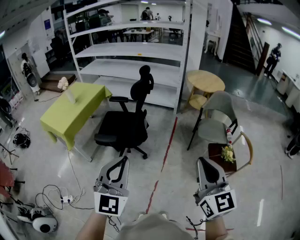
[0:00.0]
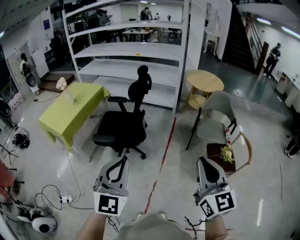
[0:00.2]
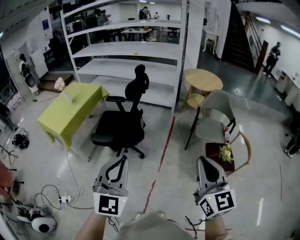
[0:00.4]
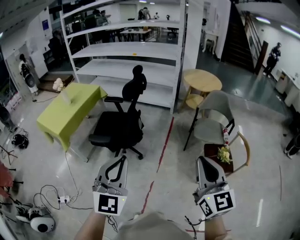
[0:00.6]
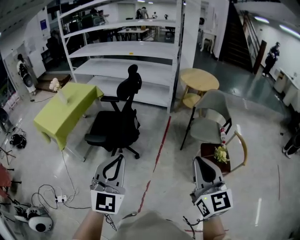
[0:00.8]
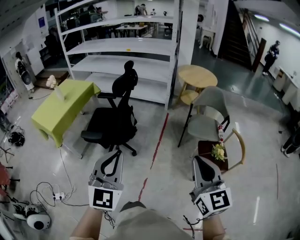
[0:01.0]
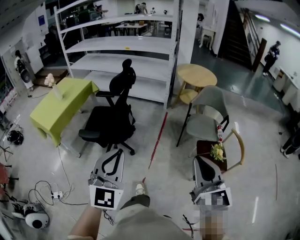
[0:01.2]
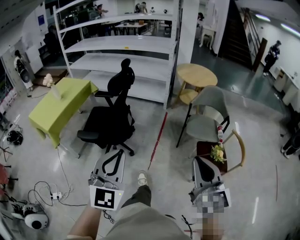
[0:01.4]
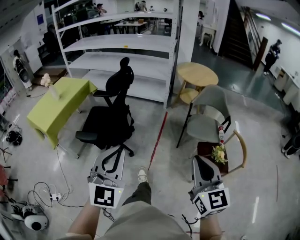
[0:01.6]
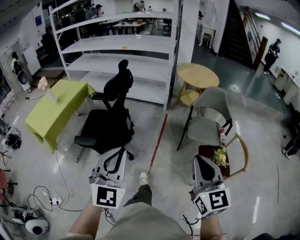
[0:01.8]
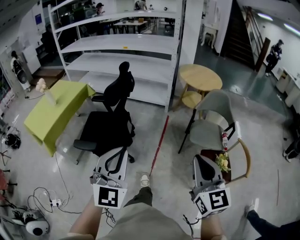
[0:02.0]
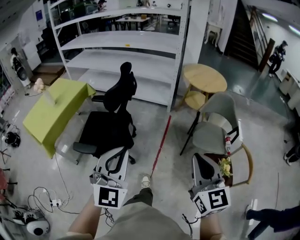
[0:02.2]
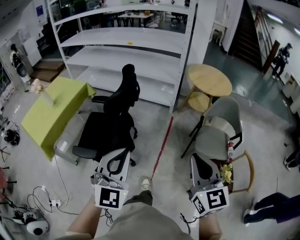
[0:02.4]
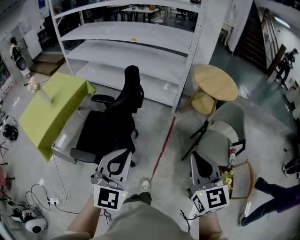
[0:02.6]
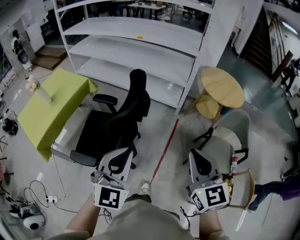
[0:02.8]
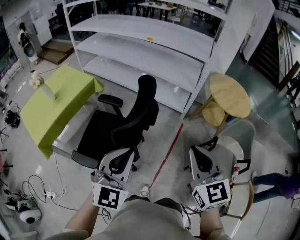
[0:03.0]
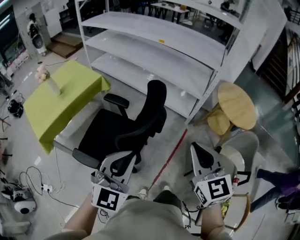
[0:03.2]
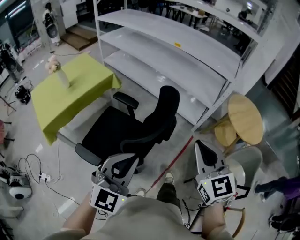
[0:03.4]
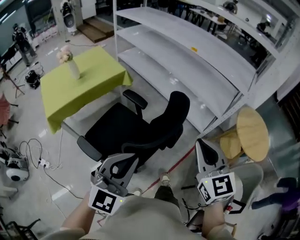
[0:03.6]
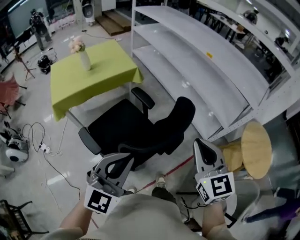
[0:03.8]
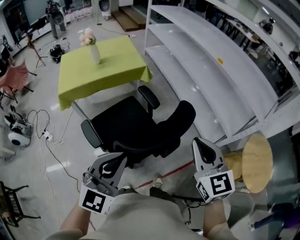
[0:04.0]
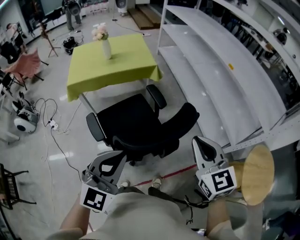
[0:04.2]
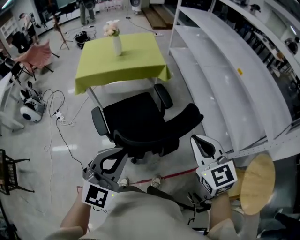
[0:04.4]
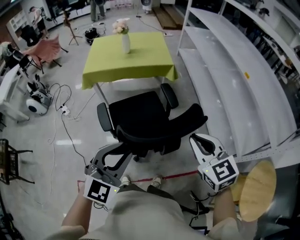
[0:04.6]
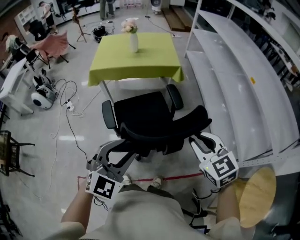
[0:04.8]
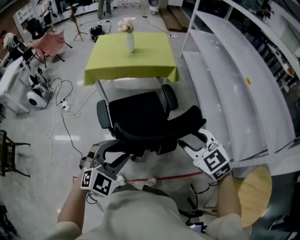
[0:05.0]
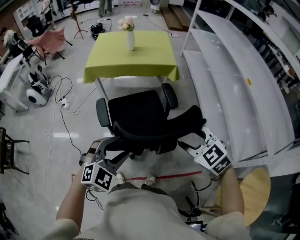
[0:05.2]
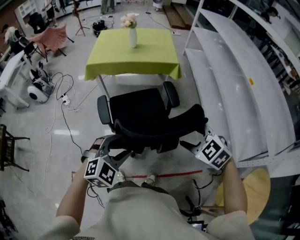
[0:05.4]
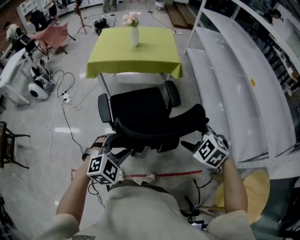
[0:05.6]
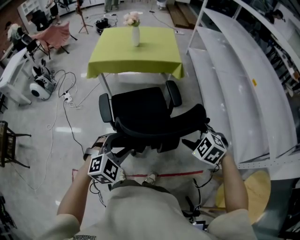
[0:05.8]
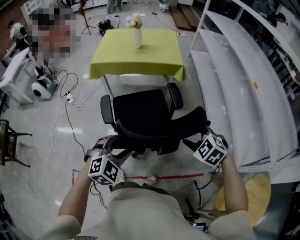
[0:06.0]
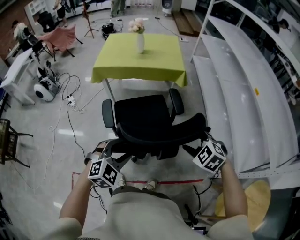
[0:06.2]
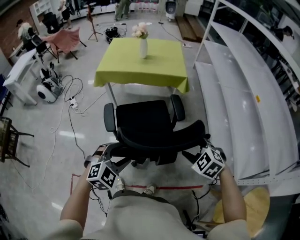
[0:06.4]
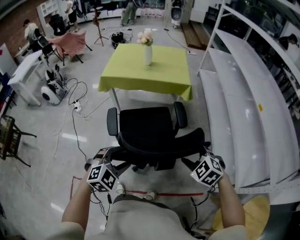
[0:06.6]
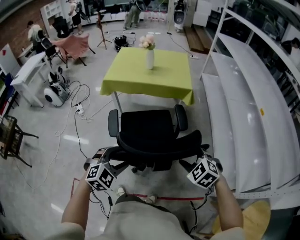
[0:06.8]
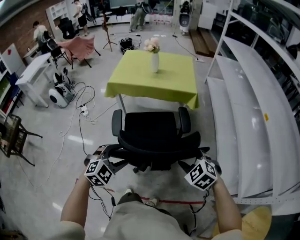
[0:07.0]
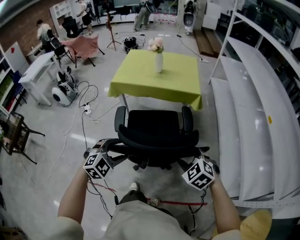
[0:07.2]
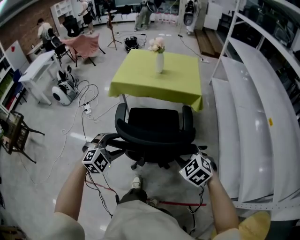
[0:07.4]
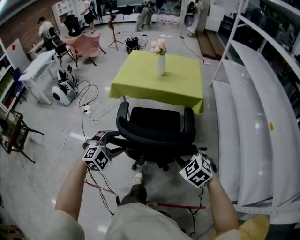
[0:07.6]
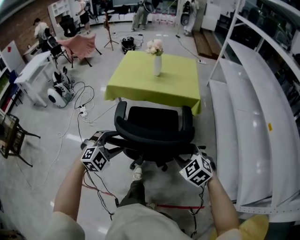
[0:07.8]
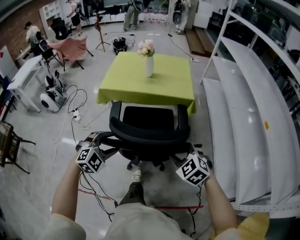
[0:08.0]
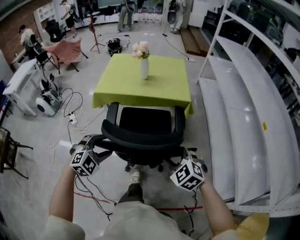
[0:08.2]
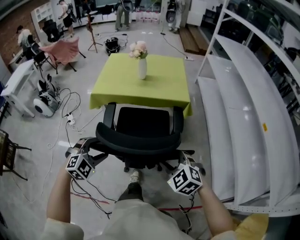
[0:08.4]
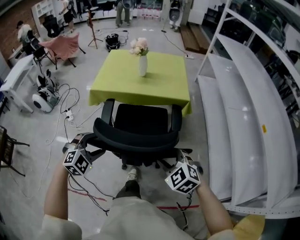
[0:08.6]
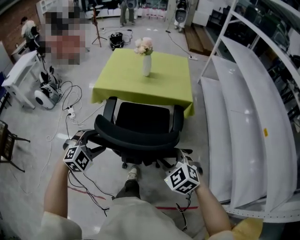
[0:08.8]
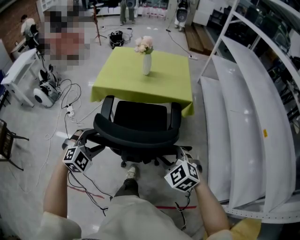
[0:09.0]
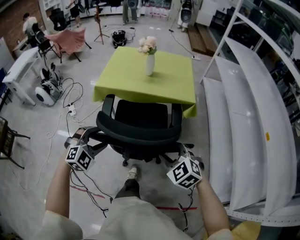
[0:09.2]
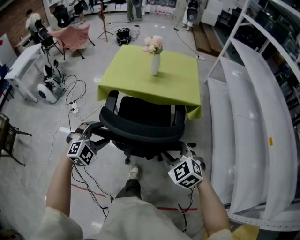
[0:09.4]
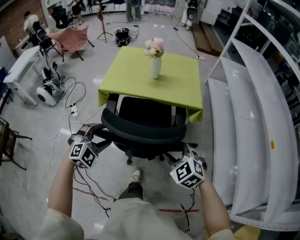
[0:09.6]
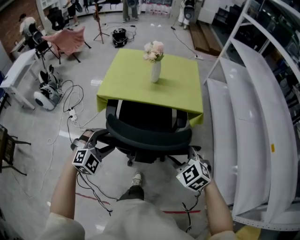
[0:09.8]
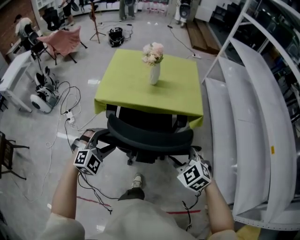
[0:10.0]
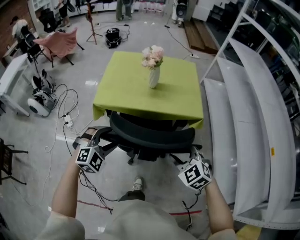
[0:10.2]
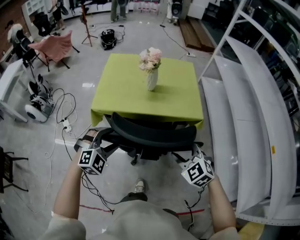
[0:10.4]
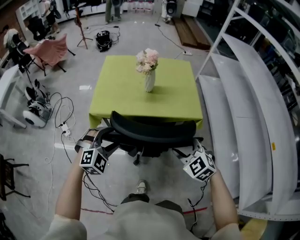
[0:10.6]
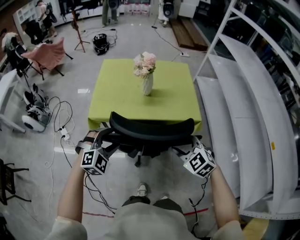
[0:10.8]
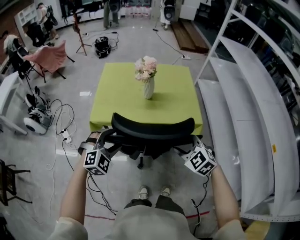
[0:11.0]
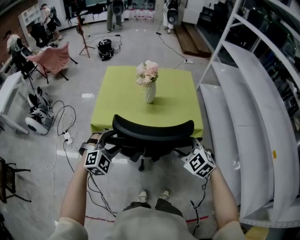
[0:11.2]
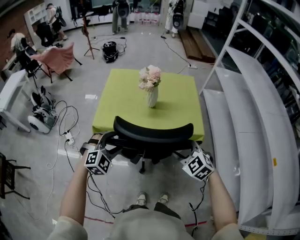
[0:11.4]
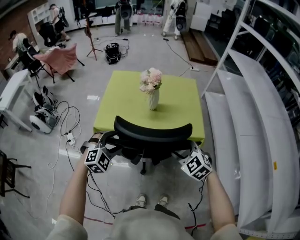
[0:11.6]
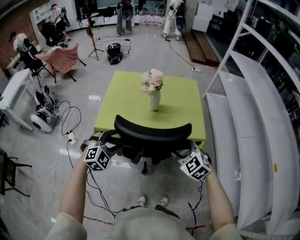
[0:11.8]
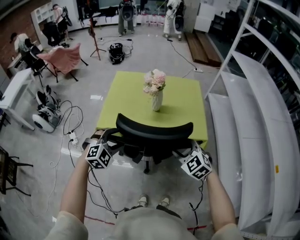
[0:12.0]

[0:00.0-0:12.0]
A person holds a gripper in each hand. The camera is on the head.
0:00.0 to 0:01.6: The right gripper goes about 15 cm to the right, forward and downward, while the left gripper goes approximately 15 cm to the right and forward.
0:01.6 to 0:03.0: The two grippers travel together, forward, approximately 50 cm.
0:03.0 to 0:04.4: The right gripper changes place by approximately 25 cm, and swivels about 60 degrees, while the left gripper changes place by approximately 5 cm, and turns by approximately 40 degrees.
0:04.4 to 0:06.0: The two grippers go about 15 cm downward. The left gripper points its fingers approximately 30 degrees further downward, and opens. Meanwhile the right gripper points its fingers some 30 degrees further downward, and opens up.
0:06.0 to 0:07.6: The two grippers go about 15 cm forward and to the left.
0:07.6 to 0:09.0: Both grippers travel together forward, roughly 10 cm.
0:09.0 to 0:10.4: Both grippers move forward, some 20 cm.
0:10.4 to 0:12.0: Both grippers move forward, some 10 cm.

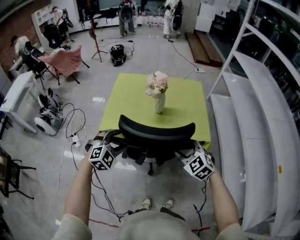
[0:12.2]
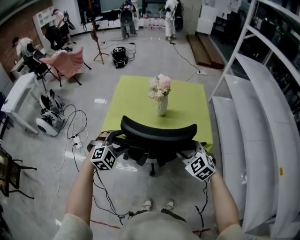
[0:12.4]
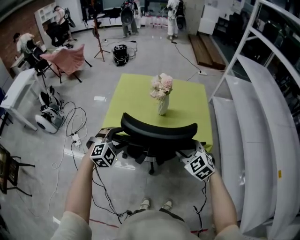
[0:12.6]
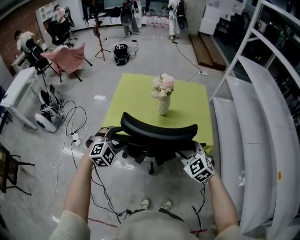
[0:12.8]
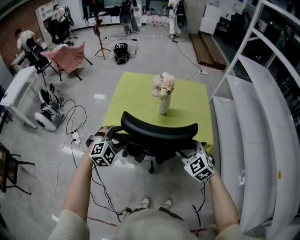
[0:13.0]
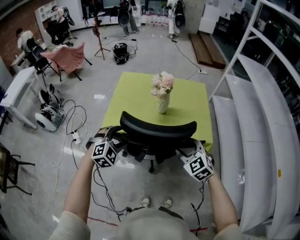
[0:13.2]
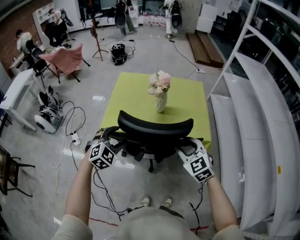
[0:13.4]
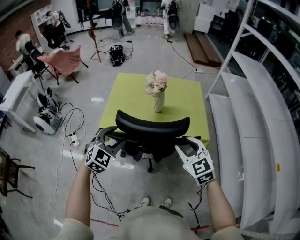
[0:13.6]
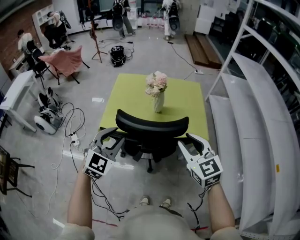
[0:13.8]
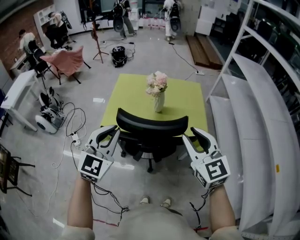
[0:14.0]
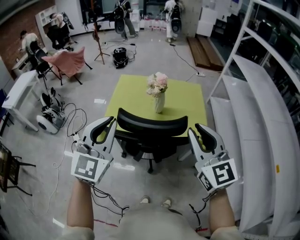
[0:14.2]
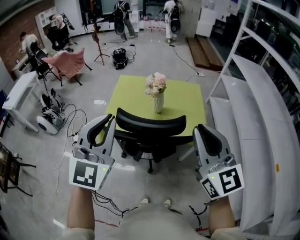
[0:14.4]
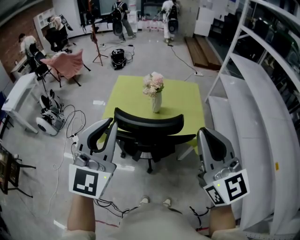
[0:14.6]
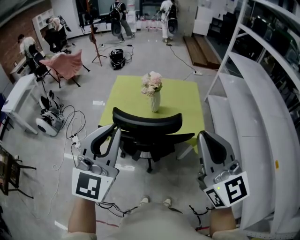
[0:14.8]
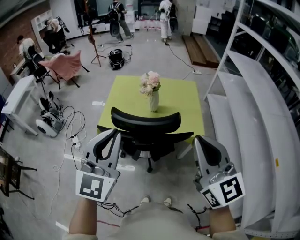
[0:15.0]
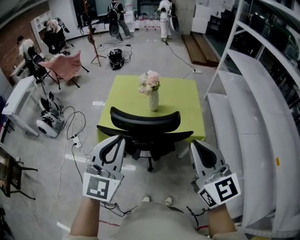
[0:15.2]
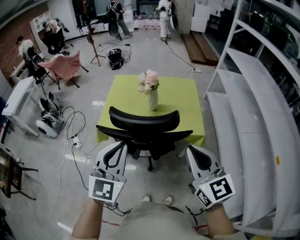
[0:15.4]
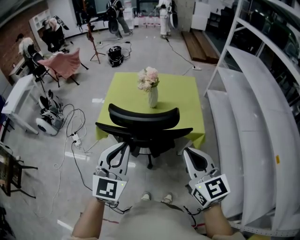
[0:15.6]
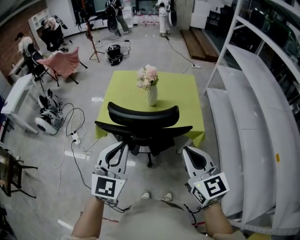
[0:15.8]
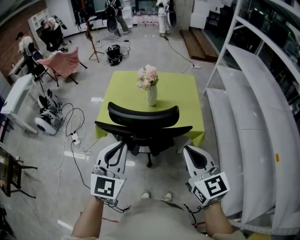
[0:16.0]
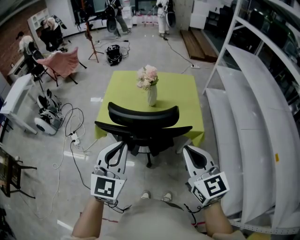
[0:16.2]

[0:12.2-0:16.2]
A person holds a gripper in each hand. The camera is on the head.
0:12.2 to 0:13.6: The two grippers go some 5 cm upward. The right gripper swivels roughly 20 degrees; the left gripper changes its angle by approximately 20 degrees.
0:13.6 to 0:14.8: The two grippers go roughly 25 cm upward and backward. The right gripper tips its fingers upward by roughly 30 degrees, and closes up; the left gripper tilts its fingers roughly 30 degrees upward, and closes up.
0:14.8 to 0:16.2: Both grippers move downward, about 10 cm.

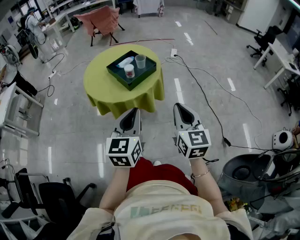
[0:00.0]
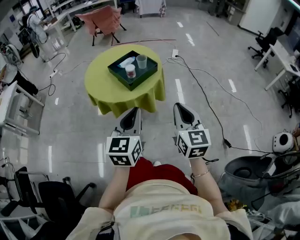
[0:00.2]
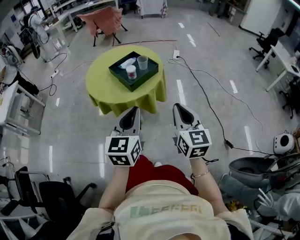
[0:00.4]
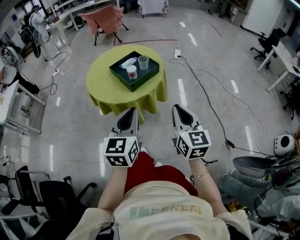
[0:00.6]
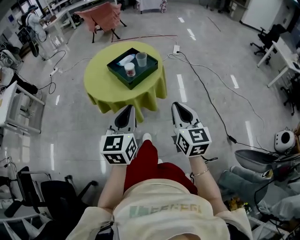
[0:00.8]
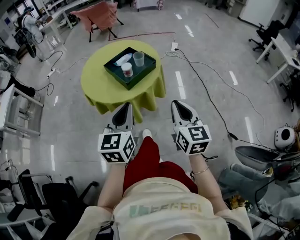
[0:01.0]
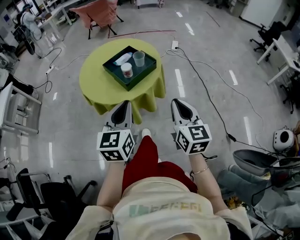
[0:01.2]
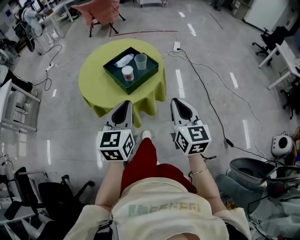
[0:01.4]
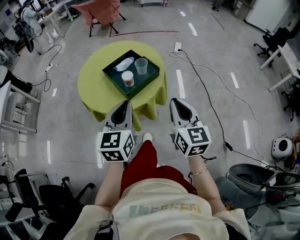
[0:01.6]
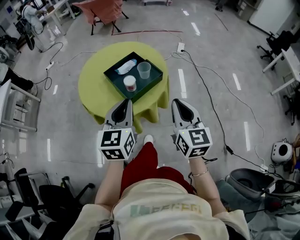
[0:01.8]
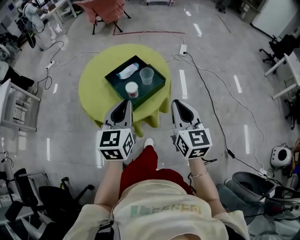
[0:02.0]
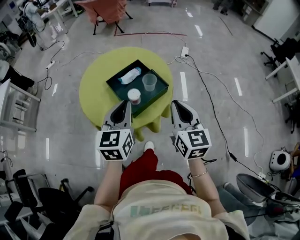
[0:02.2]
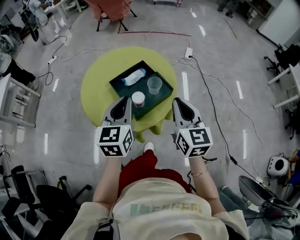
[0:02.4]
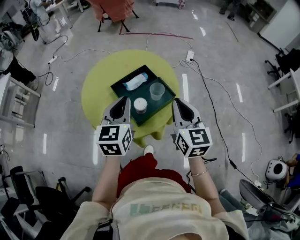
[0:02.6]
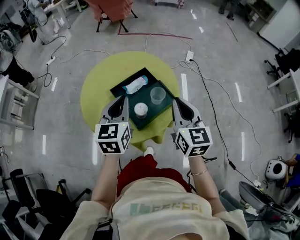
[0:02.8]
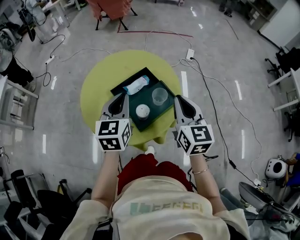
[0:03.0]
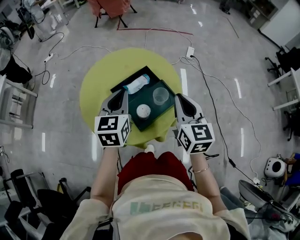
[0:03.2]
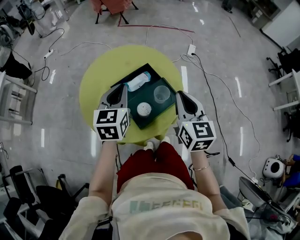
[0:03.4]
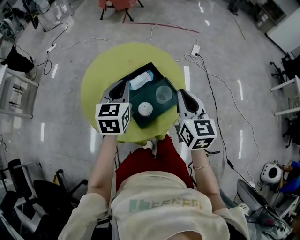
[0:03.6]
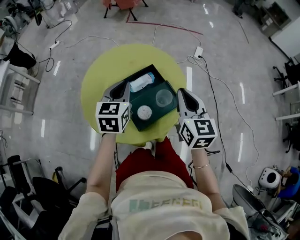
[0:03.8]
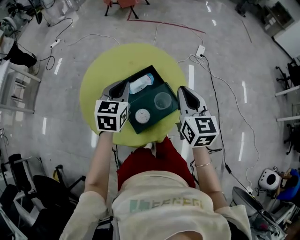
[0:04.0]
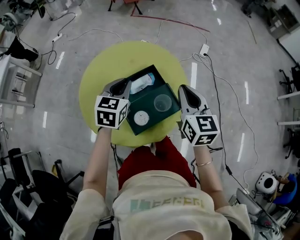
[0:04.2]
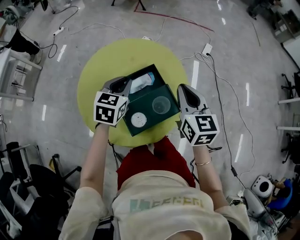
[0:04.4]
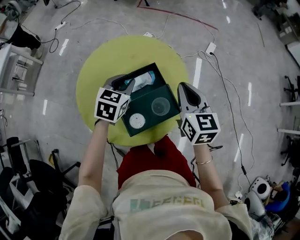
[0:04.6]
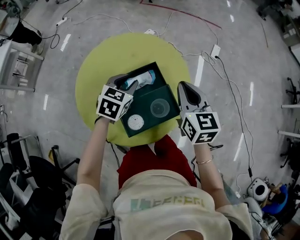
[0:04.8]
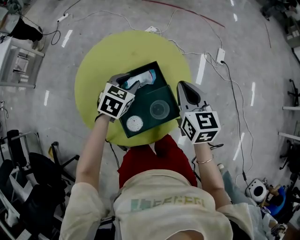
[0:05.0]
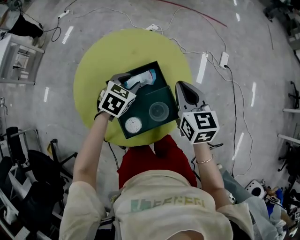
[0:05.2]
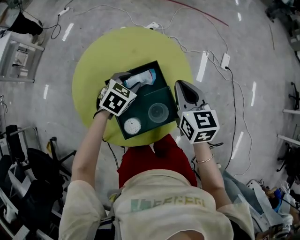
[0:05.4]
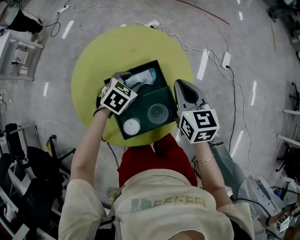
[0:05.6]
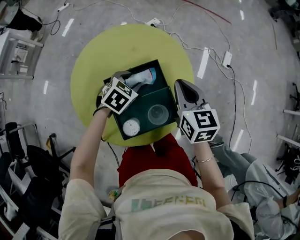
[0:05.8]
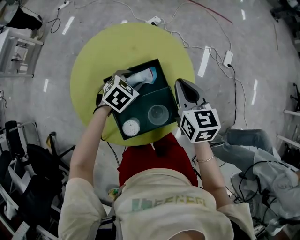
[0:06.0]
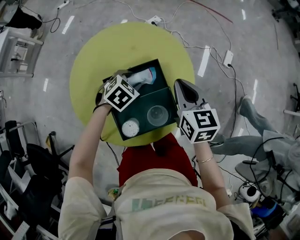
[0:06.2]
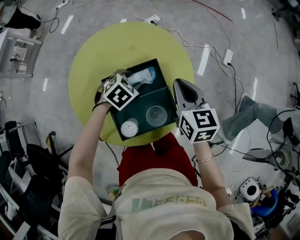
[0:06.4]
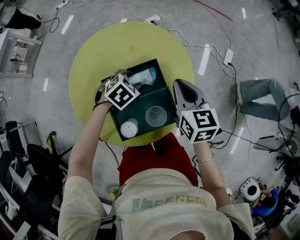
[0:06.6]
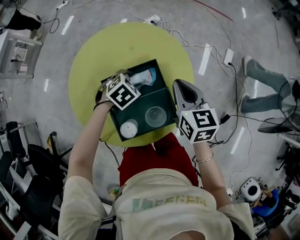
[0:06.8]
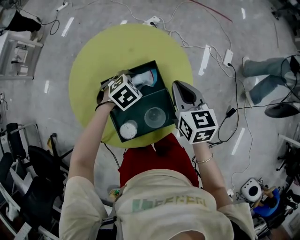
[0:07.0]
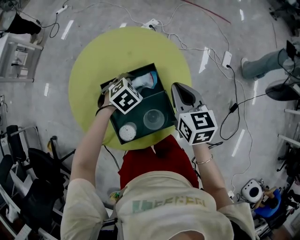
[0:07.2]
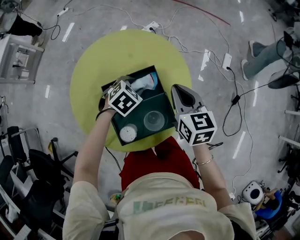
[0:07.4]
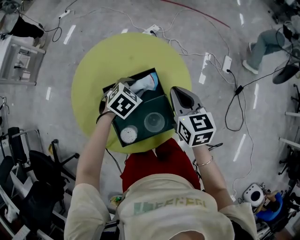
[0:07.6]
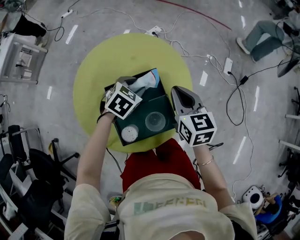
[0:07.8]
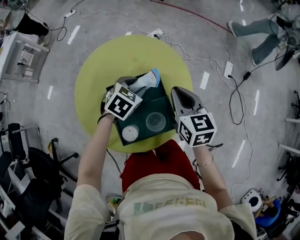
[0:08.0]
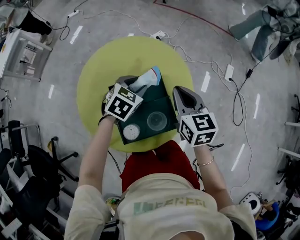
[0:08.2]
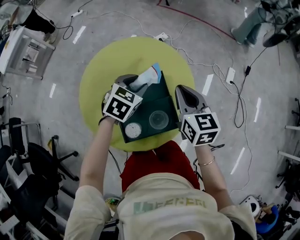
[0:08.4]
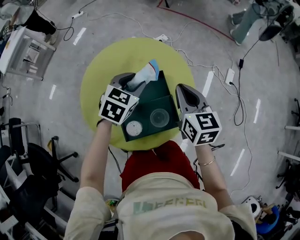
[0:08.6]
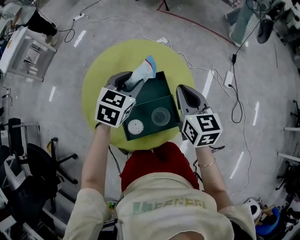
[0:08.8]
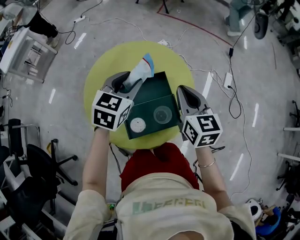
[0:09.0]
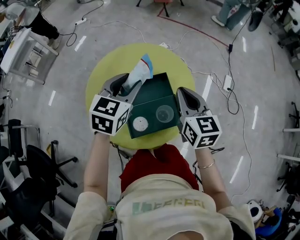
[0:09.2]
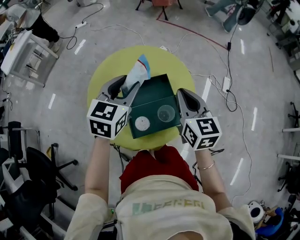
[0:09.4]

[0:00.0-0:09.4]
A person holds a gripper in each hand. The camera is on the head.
0:00.0 to 0:01.6: The grippers both shift forward by approximately 15 cm.
0:01.6 to 0:03.2: Both grippers travel together forward, about 30 cm.
0:03.2 to 0:04.8: The left gripper shifts roughly 15 cm forward and downward, turns by about 20 degrees, and opens its fingers. The right gripper goes about 15 cm forward.
0:04.8 to 0:06.2: The right gripper moves approximately 5 cm, while the left gripper shifts some 10 cm downward, and rotates roughly 20 degrees.
0:06.2 to 0:07.8: The left gripper ends up some 5 cm from where it was.
0:07.8 to 0:09.4: The left gripper shifts some 20 cm upward, and tips its fingers upward by roughly 30 degrees, while the right gripper is displaced upward and backward by about 10 cm.
